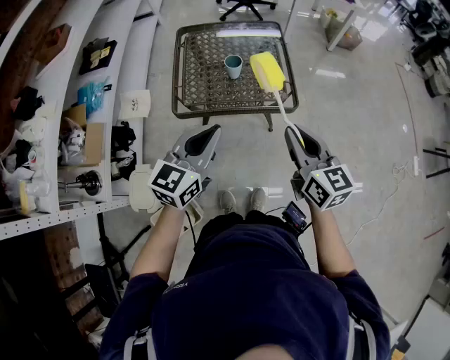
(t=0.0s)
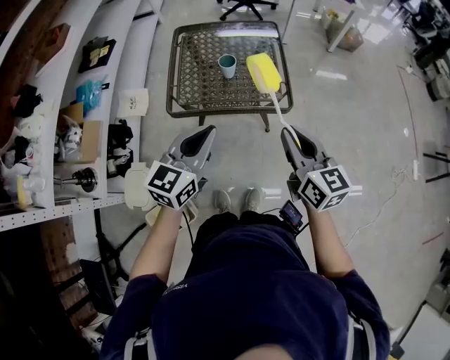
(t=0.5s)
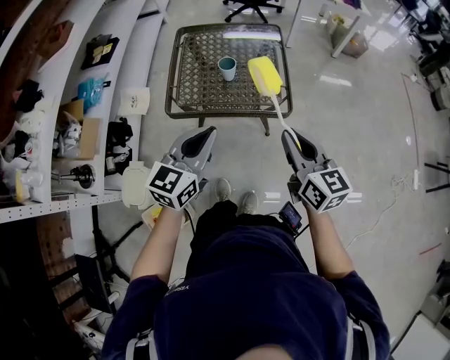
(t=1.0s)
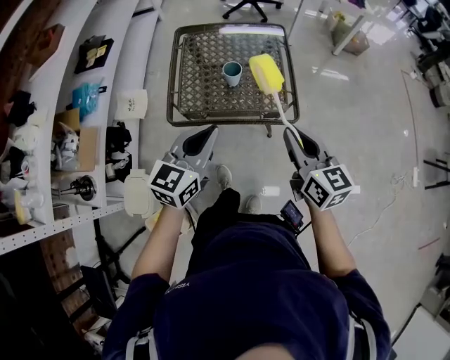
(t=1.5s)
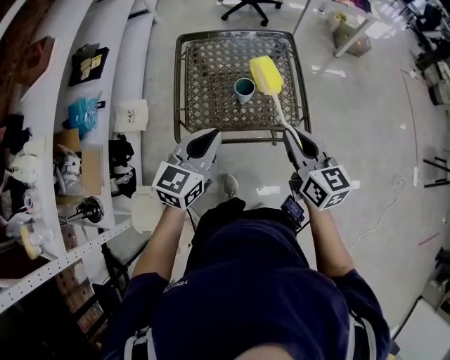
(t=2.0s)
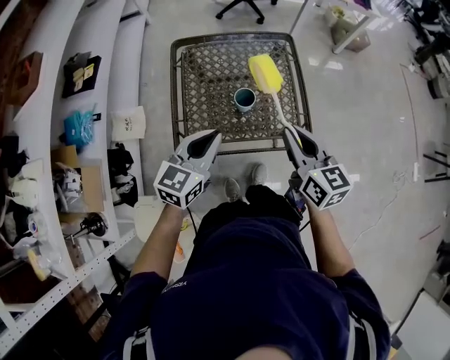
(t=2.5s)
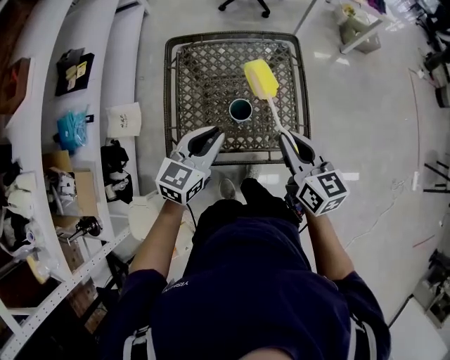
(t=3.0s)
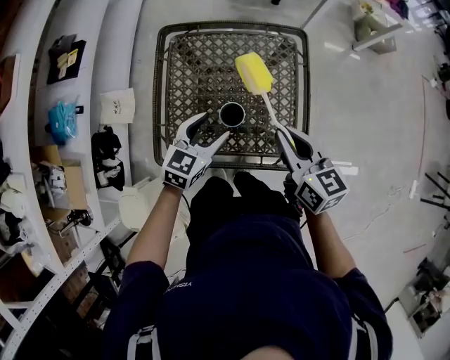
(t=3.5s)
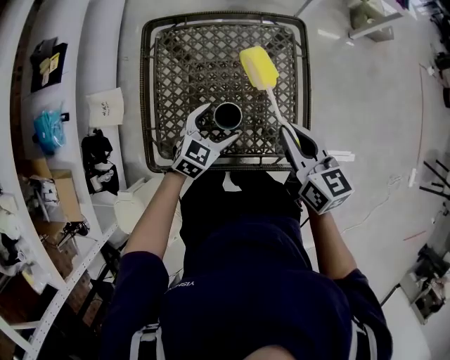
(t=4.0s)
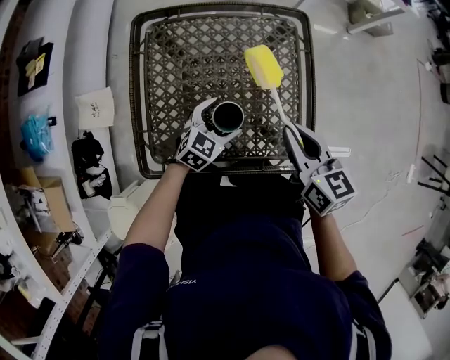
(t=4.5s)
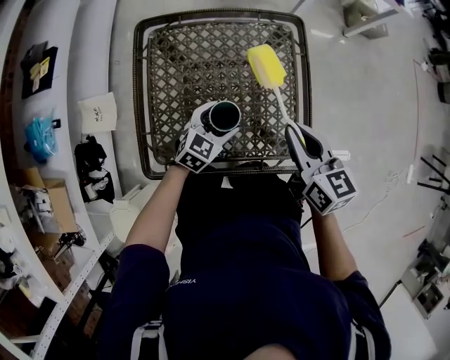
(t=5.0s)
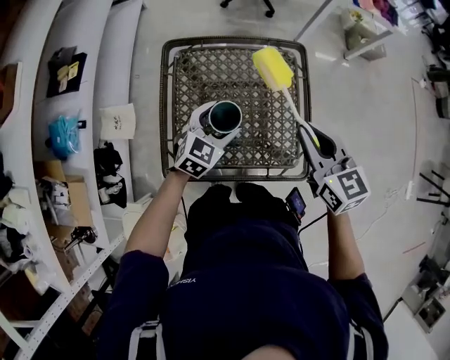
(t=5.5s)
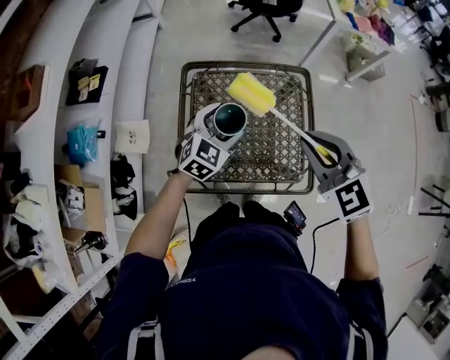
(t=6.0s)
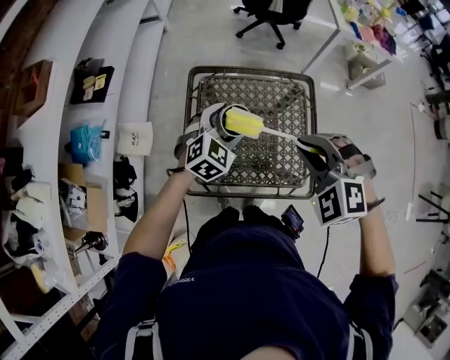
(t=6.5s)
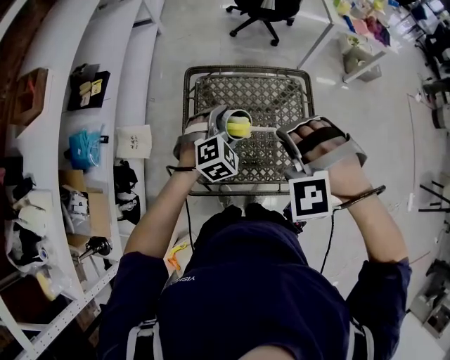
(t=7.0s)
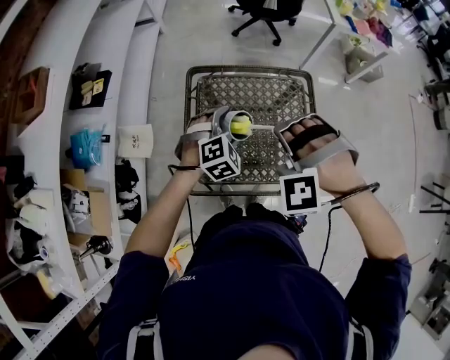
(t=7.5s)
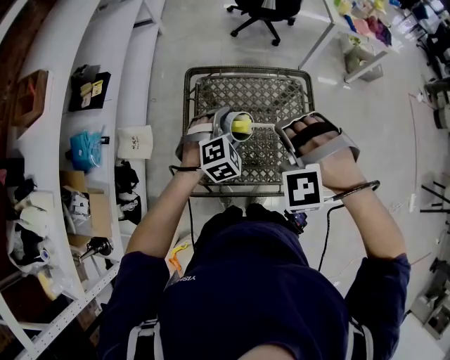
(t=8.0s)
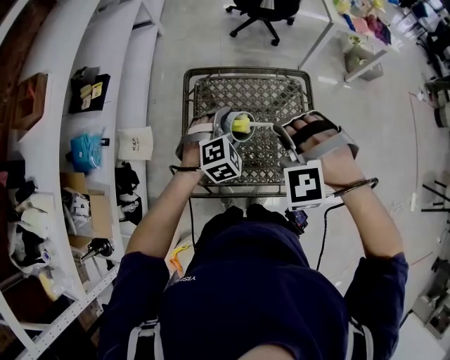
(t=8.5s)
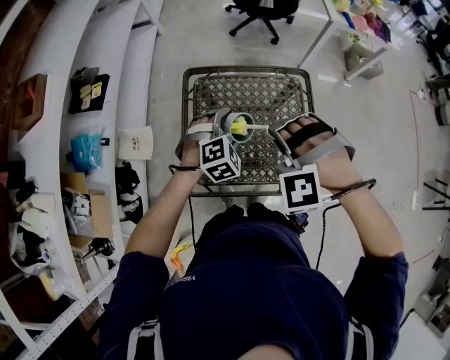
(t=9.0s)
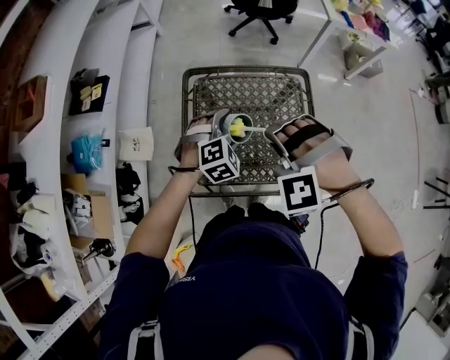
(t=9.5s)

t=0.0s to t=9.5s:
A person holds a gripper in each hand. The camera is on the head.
t=0.0s to t=2.0s: The grippers both shift forward by approximately 15 cm.
t=2.0s to t=4.0s: The right gripper shifts approximately 25 cm forward and downward, while the left gripper travels downward and forward by about 30 cm, turns by some 30 degrees, and opens.
t=4.0s to t=5.5s: The grippers both shift upward by about 10 cm.
t=5.5s to t=7.5s: The right gripper heads to the left, covering some 15 cm, and rotates around the line of its fingers by approximately 90 degrees, counterclockwise from behind. The left gripper heads to the left and upward, covering roughly 10 cm, and turns by approximately 30 degrees.
t=7.5s to t=9.5s: The grippers make only small movements.

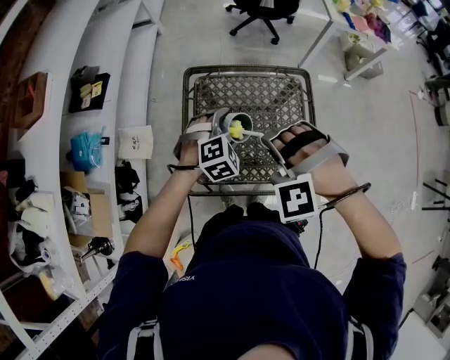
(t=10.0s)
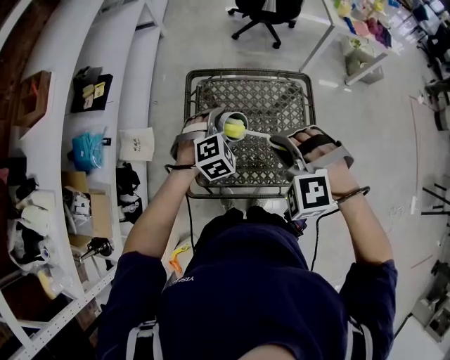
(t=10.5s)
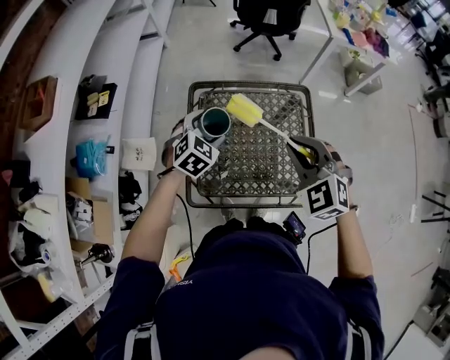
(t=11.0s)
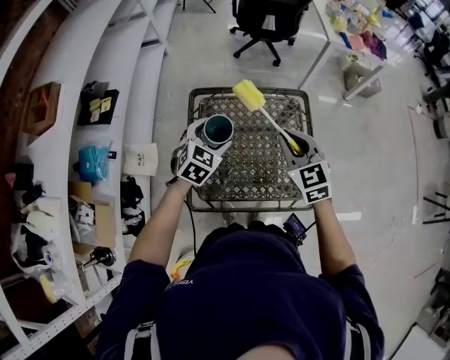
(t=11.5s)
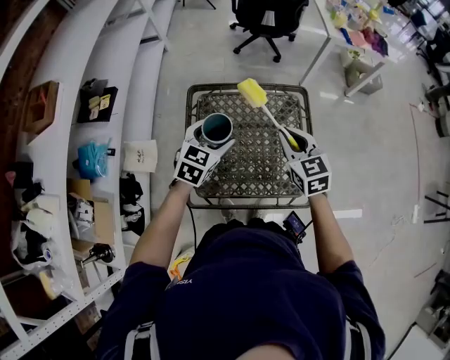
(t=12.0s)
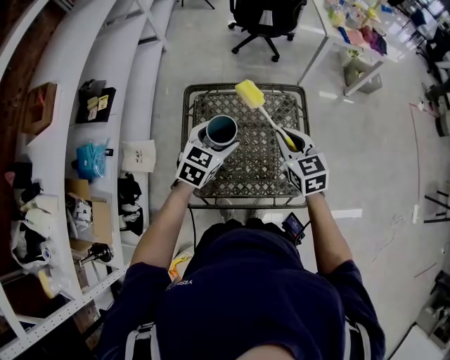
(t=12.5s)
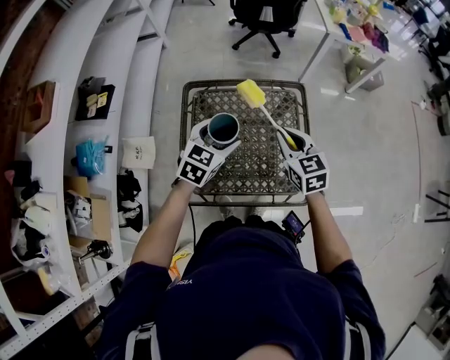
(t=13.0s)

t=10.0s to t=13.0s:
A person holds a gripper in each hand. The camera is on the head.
t=10.0s to t=11.5s: The left gripper shifts by roughly 5 cm, and rotates roughly 30 degrees. The right gripper heads forward and to the right, covering roughly 10 cm, and twists some 70 degrees clockwise, seen from behind.
t=11.5s to t=13.0s: The left gripper moves to the right, roughly 5 cm, while the right gripper shifts by about 5 cm.

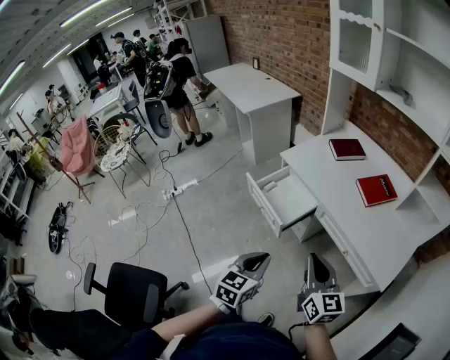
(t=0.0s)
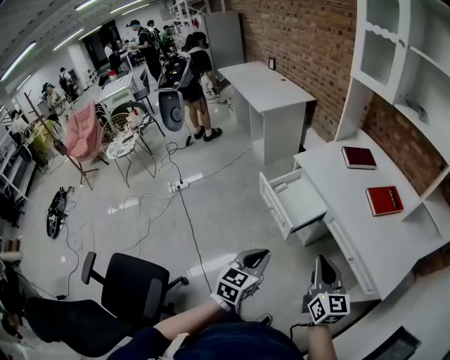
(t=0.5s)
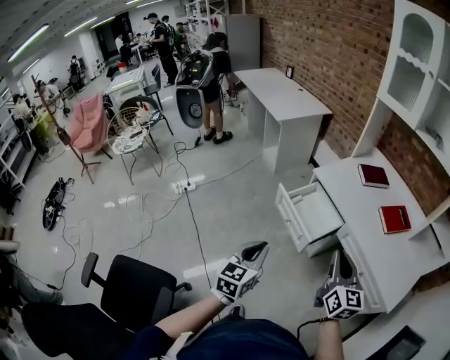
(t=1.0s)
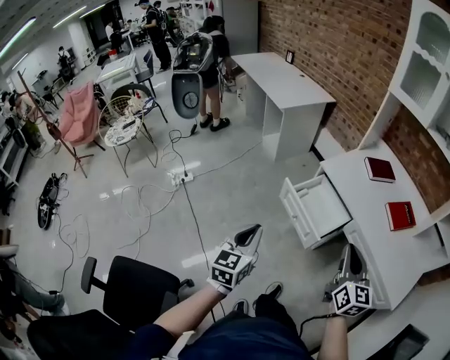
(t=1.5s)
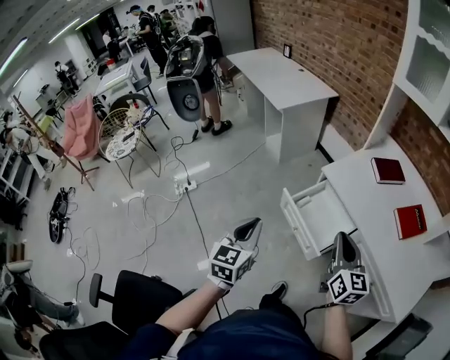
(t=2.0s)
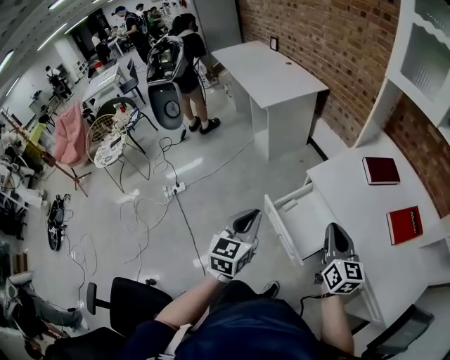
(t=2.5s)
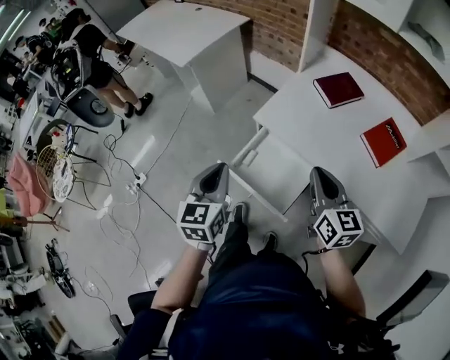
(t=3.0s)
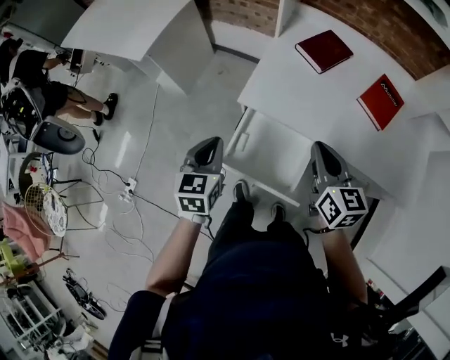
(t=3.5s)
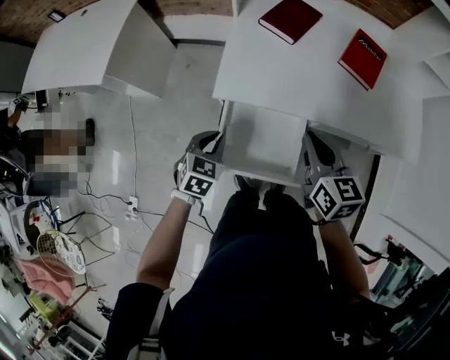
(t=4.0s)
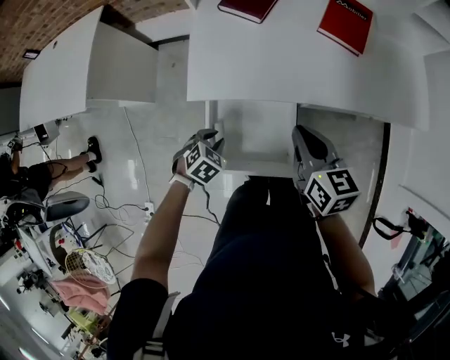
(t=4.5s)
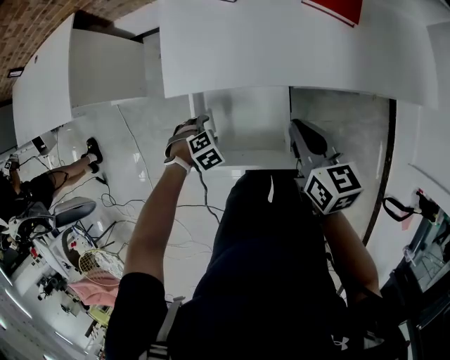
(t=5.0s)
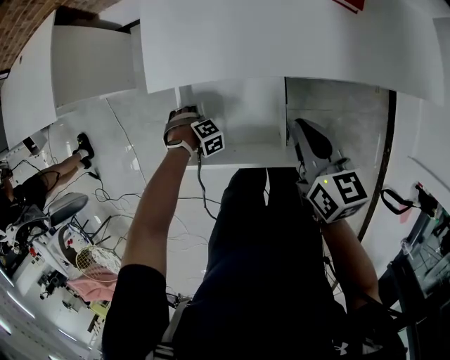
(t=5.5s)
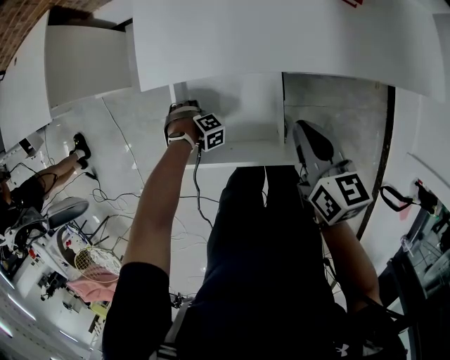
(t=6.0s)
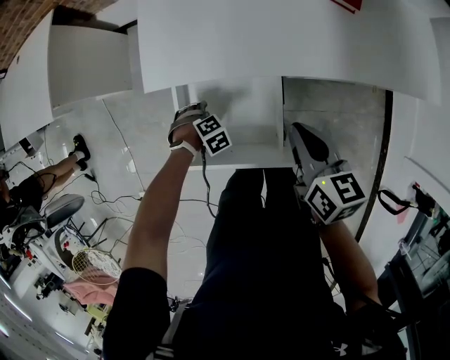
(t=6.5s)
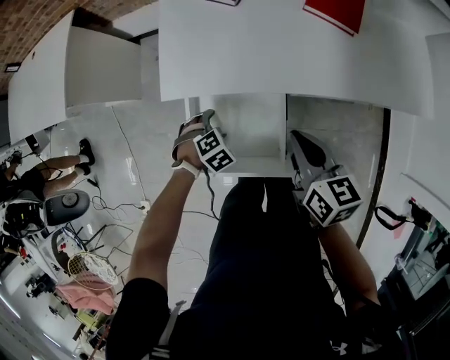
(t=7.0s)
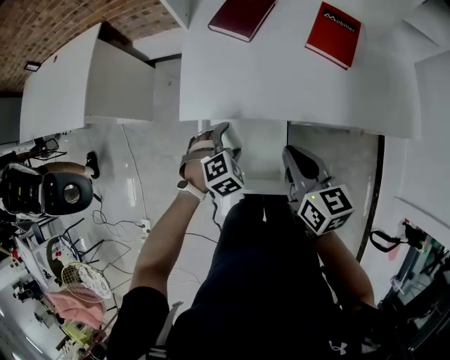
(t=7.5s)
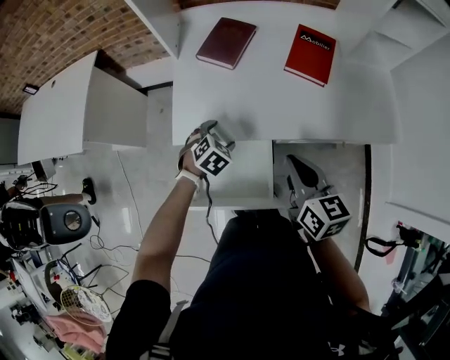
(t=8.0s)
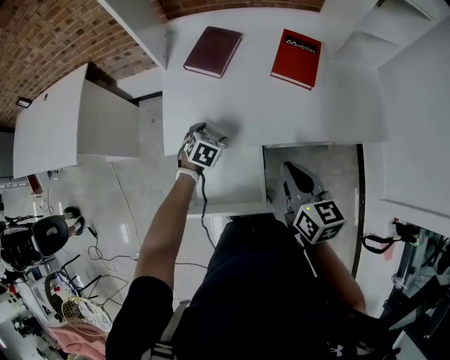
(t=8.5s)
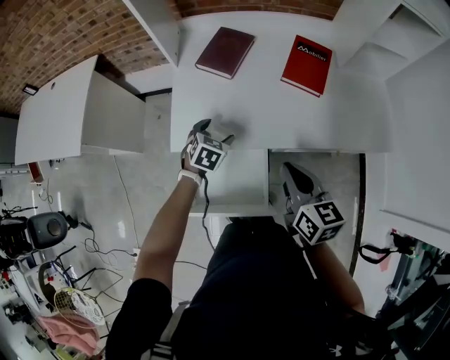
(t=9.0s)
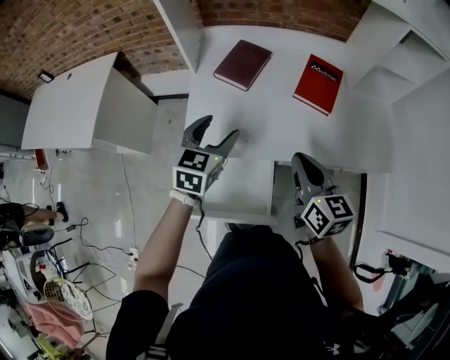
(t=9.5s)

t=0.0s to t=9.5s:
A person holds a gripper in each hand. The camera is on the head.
t=0.0s to t=2.0s: The left gripper travels to the left and forward by some 35 cm, while the right gripper shifts about 25 cm forward and to the left.
t=2.0s to t=4.0s: The right gripper changes place by roughly 25 cm, and turns by approximately 40 degrees, while the left gripper changes place by about 40 cm, and angles its fingers downward, by roughly 30 degrees.
t=4.0s to t=5.5s: The left gripper heads downward, covering about 30 cm, swivels approximately 80 degrees, and opens. Meanwhile the right gripper moves downward, roughly 10 cm.
t=5.5s to t=7.5s: The right gripper moves upward, about 10 cm, while the left gripper is displaced upward by approximately 25 cm, and rotates some 40 degrees.
t=7.5s to t=9.5s: The left gripper moves upward and forward, approximately 25 cm, and tips its fingers upward by about 40 degrees; the right gripper goes some 10 cm upward and forward.

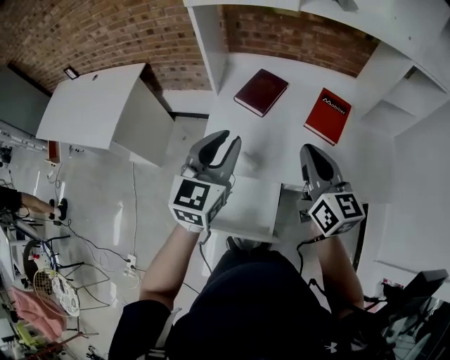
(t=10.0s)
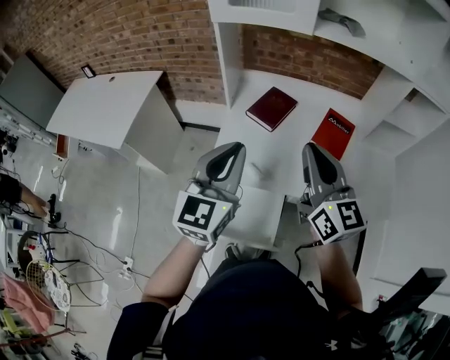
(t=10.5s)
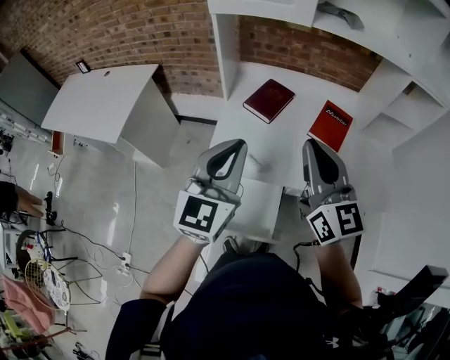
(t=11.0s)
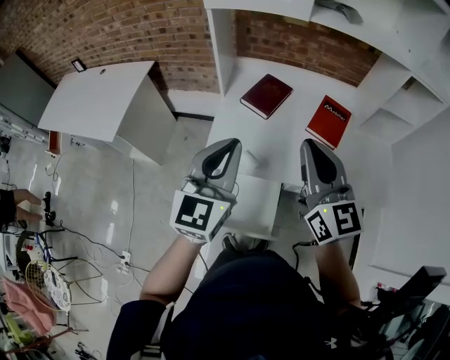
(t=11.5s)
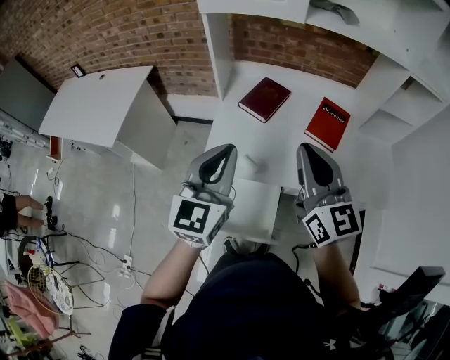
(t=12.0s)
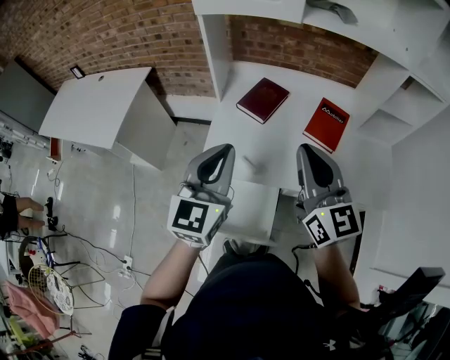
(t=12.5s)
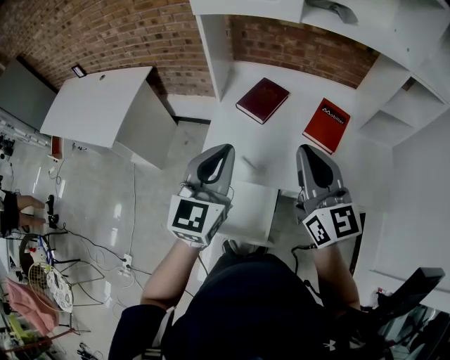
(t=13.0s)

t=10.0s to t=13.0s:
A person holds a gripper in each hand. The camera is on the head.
t=10.0s to t=11.5s: The right gripper is displaced upward by about 10 cm; the left gripper shifts about 5 cm backward and upward.
t=11.5s to t=13.0s: The grippers move only a little.

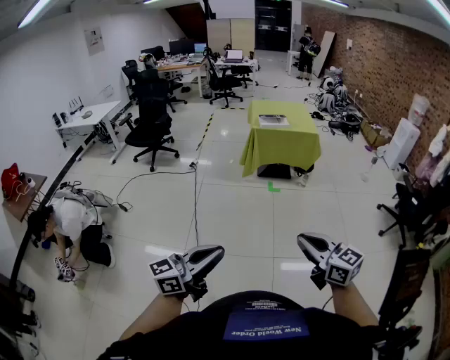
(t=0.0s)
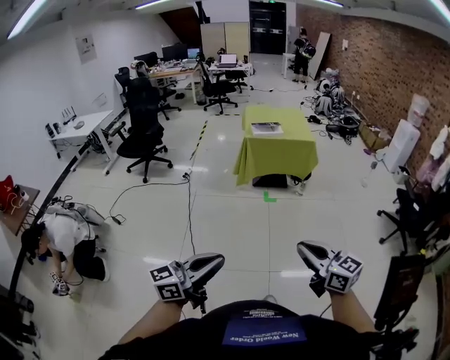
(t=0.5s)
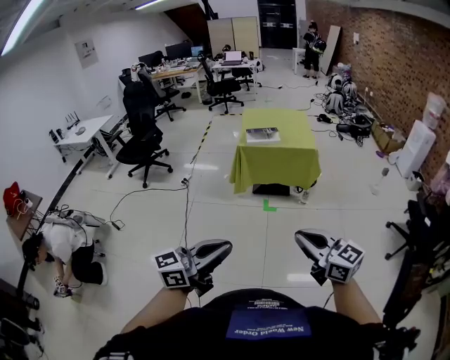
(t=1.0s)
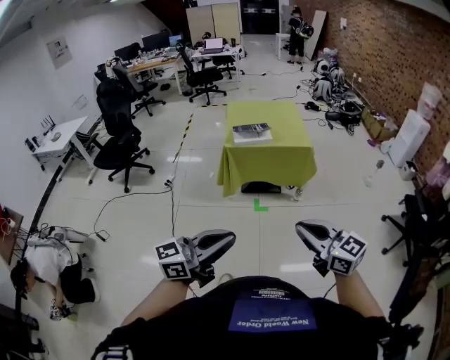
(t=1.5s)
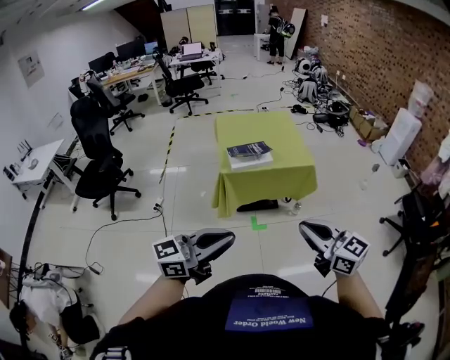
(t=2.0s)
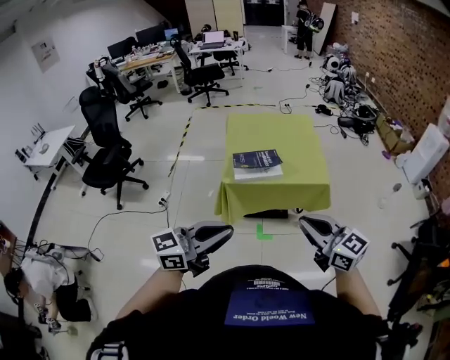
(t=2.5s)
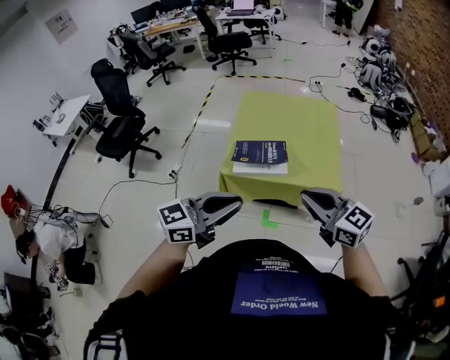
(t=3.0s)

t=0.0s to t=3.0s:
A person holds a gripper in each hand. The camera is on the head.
t=0.0s to t=1.5s: Both grippers are carried forward, some 50 cm.
t=1.5s to t=3.0s: The pair of grippers is taken forward, approximately 60 cm.
